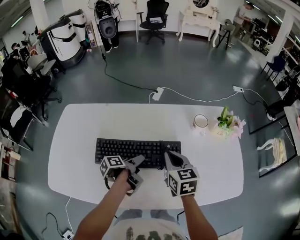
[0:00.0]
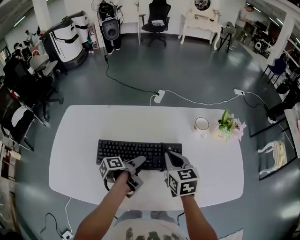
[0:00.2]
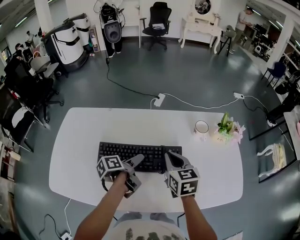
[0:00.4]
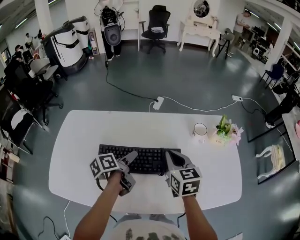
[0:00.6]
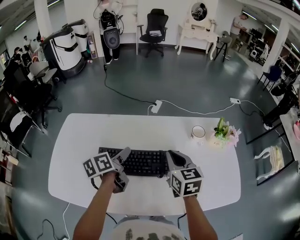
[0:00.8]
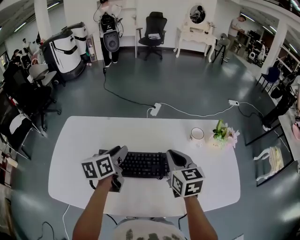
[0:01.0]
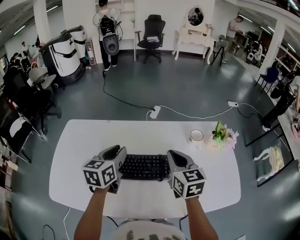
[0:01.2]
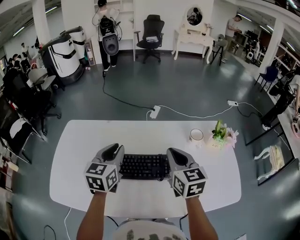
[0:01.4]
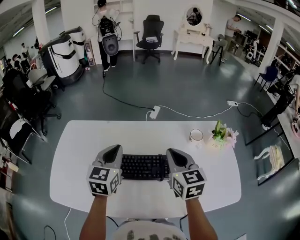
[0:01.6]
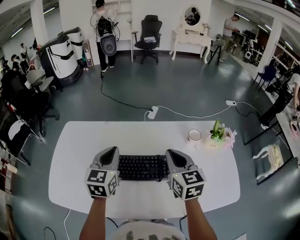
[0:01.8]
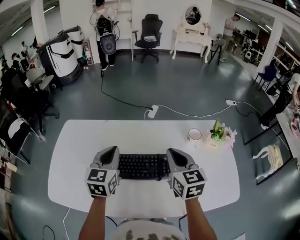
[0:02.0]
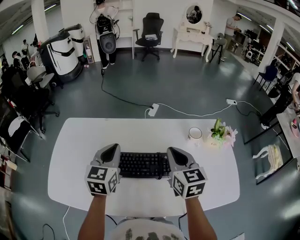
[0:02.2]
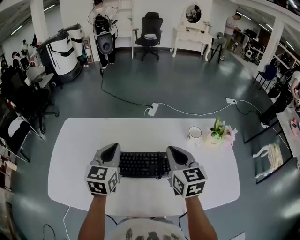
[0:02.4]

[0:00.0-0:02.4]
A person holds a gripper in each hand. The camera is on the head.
0:00.0 to 0:01.2: The right gripper goes roughly 10 cm upward.

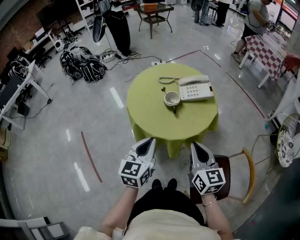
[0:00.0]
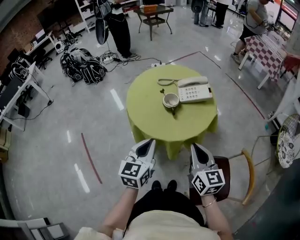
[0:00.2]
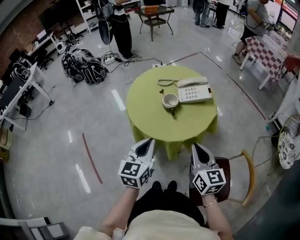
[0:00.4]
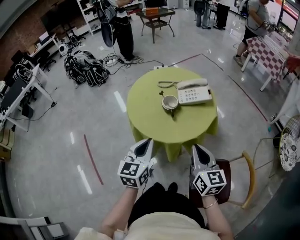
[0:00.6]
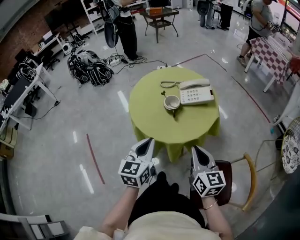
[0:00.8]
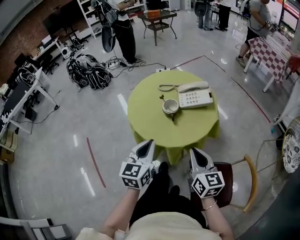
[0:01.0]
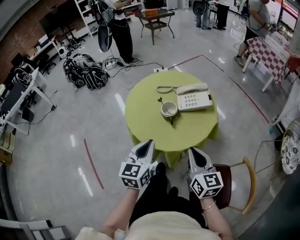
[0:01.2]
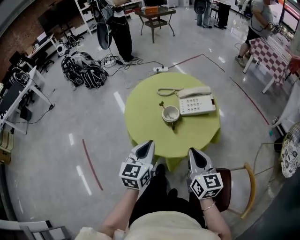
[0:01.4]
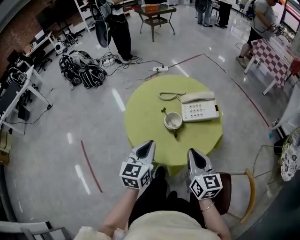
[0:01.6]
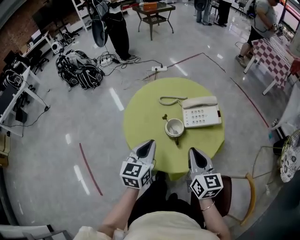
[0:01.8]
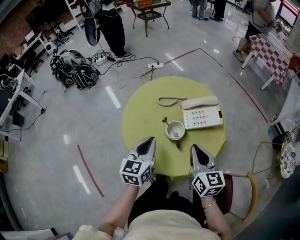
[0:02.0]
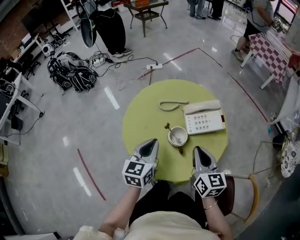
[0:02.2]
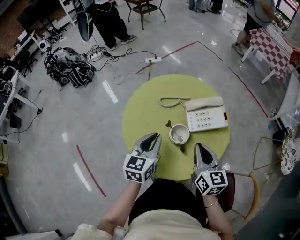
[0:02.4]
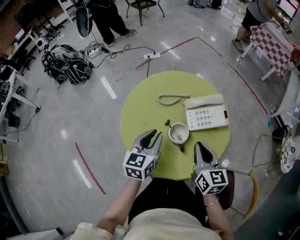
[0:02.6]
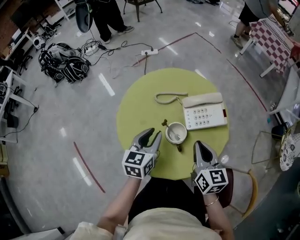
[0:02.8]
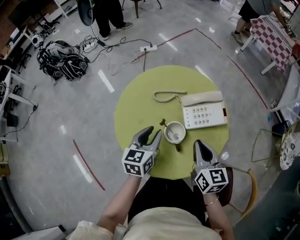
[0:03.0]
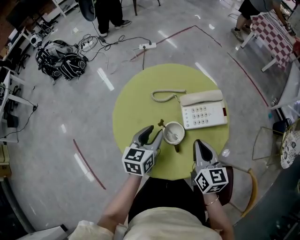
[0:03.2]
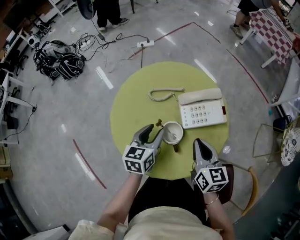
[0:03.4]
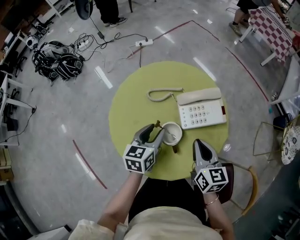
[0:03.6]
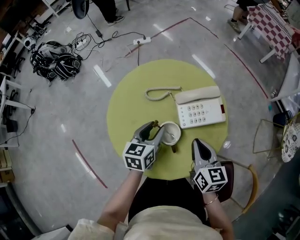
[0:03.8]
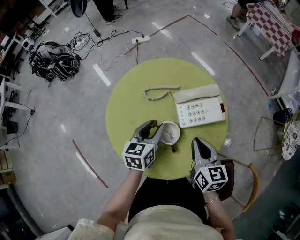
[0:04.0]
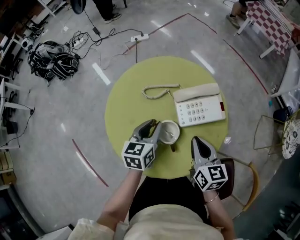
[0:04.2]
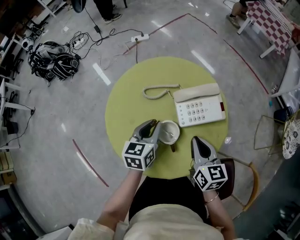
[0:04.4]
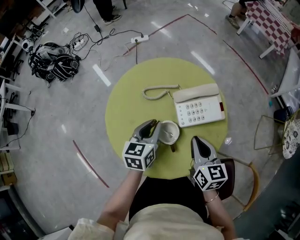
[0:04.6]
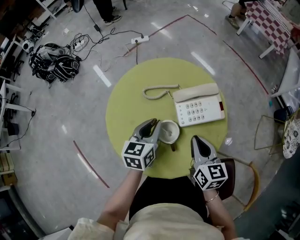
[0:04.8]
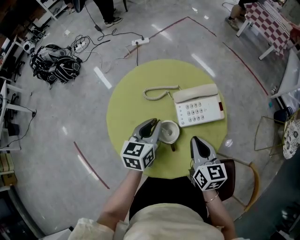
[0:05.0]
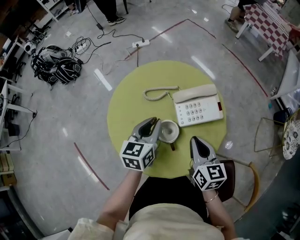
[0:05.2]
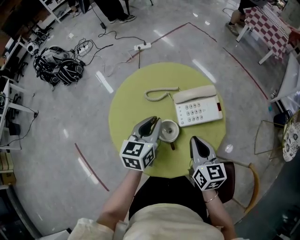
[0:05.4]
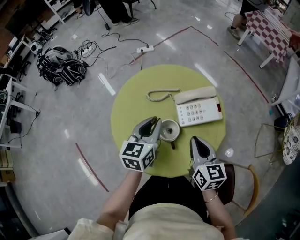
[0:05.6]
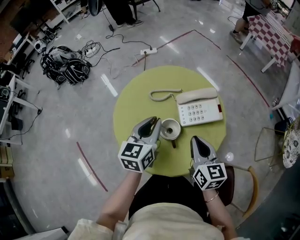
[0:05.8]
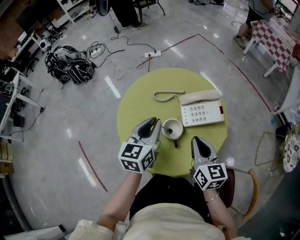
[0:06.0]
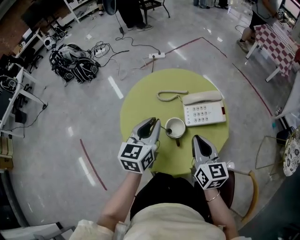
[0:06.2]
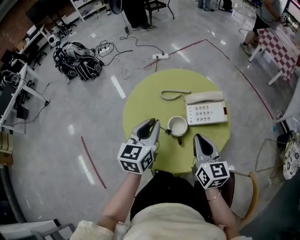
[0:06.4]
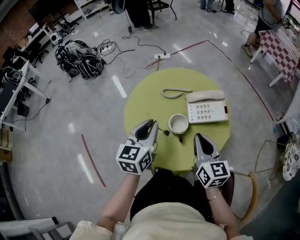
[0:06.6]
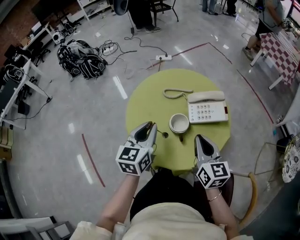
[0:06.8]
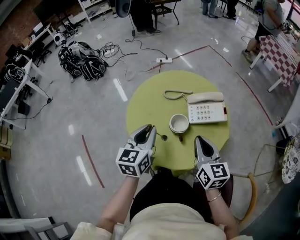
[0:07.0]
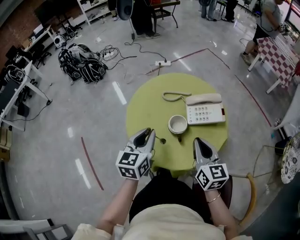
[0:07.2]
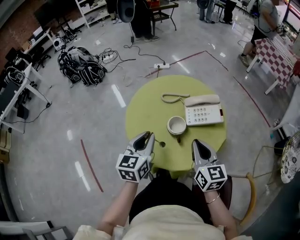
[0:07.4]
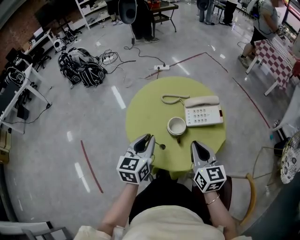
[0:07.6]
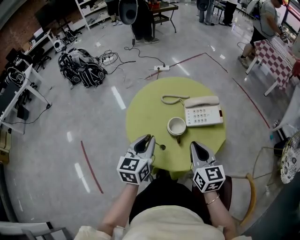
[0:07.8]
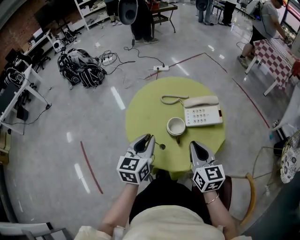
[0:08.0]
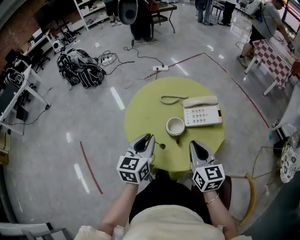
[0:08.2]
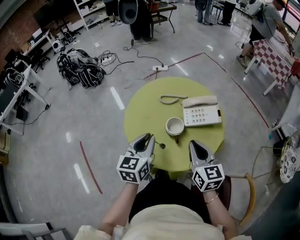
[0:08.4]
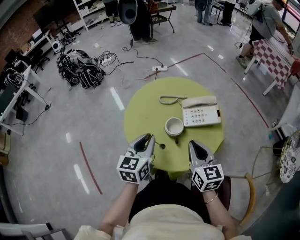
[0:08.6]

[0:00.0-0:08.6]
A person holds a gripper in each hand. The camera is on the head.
0:00.0 to 0:01.4: The grippers both shift forward by some 5 cm.
0:01.4 to 0:02.8: Both grippers move forward, approximately 15 cm. The left gripper opens up.
0:02.8 to 0:04.4: The left gripper ends up about 5 cm from where it was.
0:04.4 to 0:05.8: The left gripper goes some 10 cm upward.
0:05.8 to 0:07.2: The right gripper changes place by approximately 5 cm; the left gripper moves backward and to the left, some 10 cm.
0:07.2 to 0:08.6: The grippers move only a little.

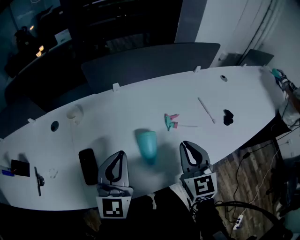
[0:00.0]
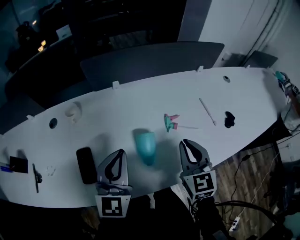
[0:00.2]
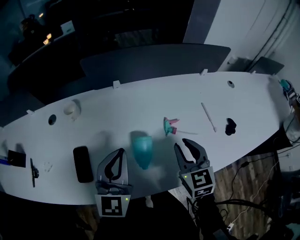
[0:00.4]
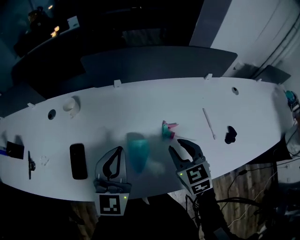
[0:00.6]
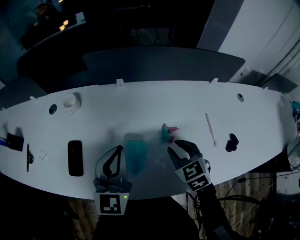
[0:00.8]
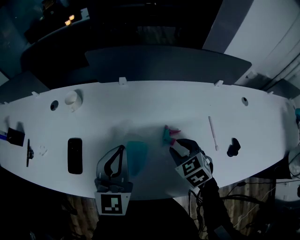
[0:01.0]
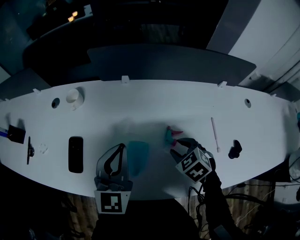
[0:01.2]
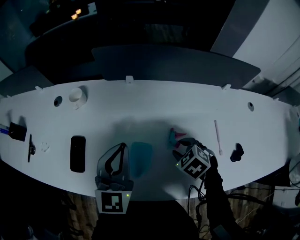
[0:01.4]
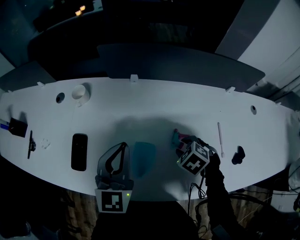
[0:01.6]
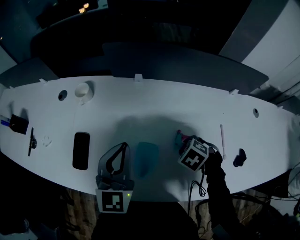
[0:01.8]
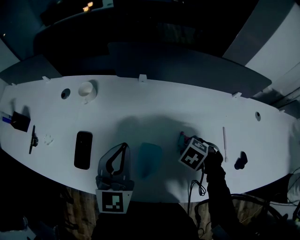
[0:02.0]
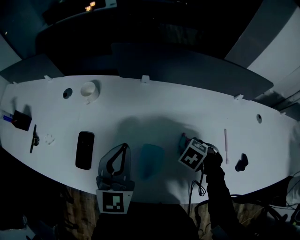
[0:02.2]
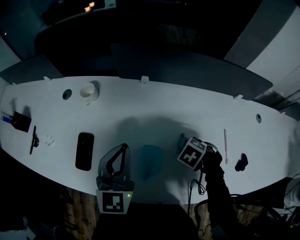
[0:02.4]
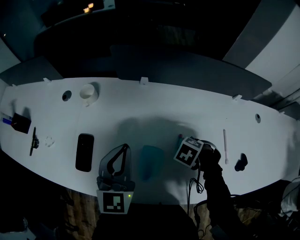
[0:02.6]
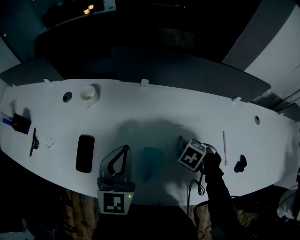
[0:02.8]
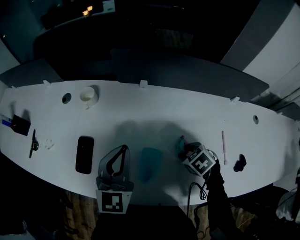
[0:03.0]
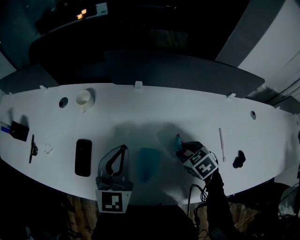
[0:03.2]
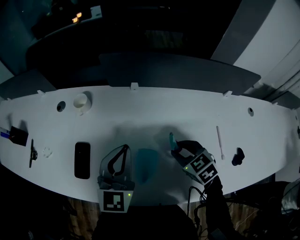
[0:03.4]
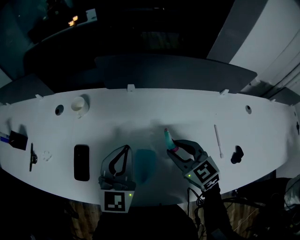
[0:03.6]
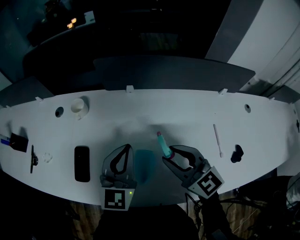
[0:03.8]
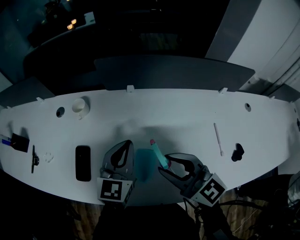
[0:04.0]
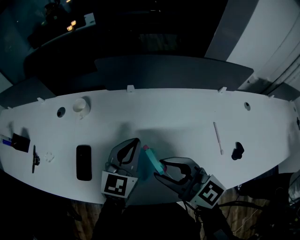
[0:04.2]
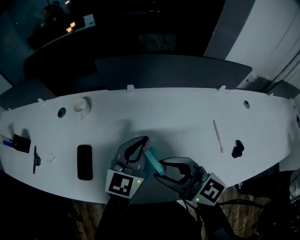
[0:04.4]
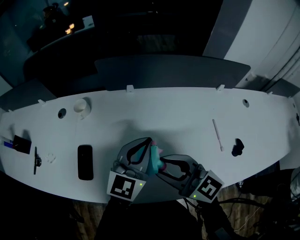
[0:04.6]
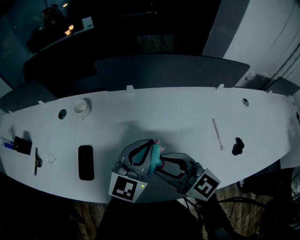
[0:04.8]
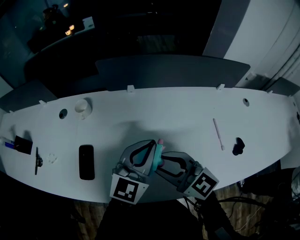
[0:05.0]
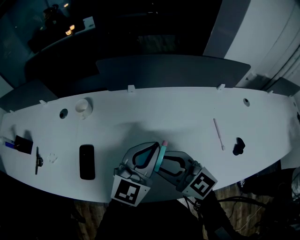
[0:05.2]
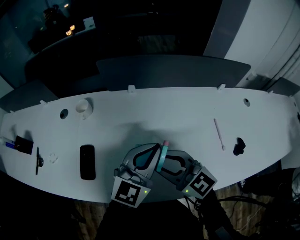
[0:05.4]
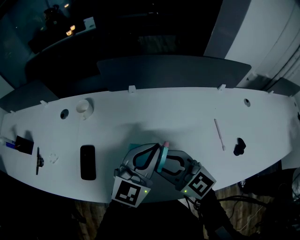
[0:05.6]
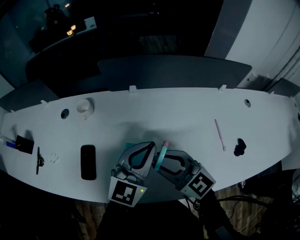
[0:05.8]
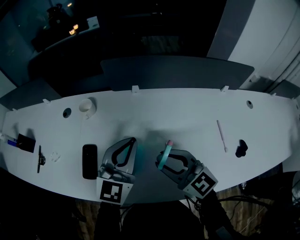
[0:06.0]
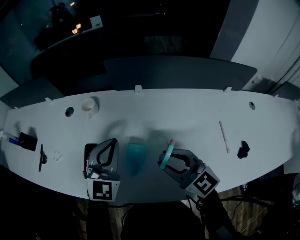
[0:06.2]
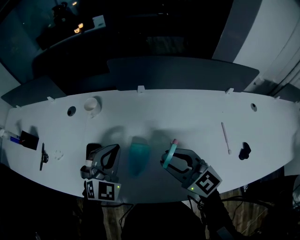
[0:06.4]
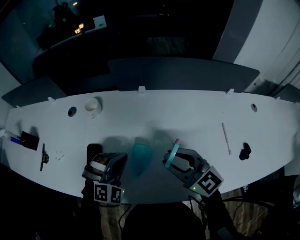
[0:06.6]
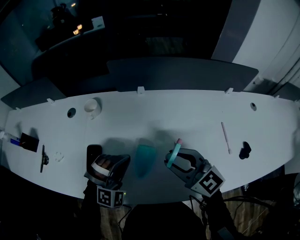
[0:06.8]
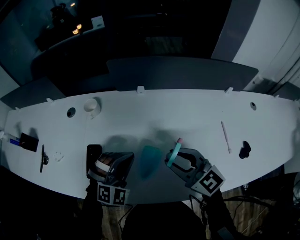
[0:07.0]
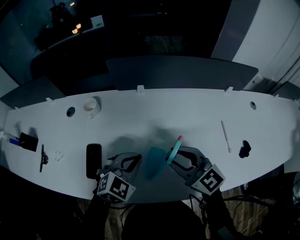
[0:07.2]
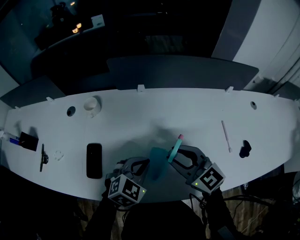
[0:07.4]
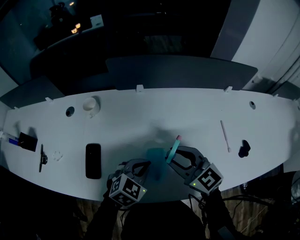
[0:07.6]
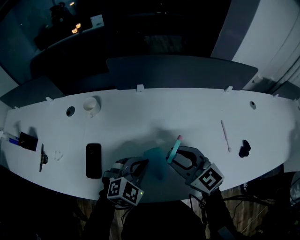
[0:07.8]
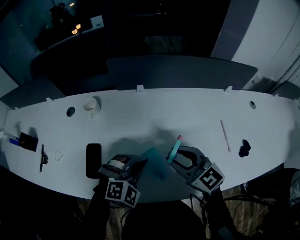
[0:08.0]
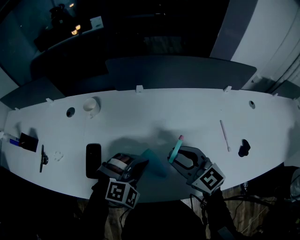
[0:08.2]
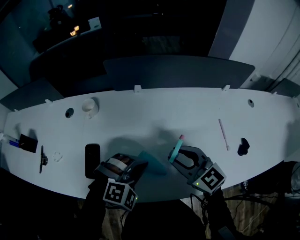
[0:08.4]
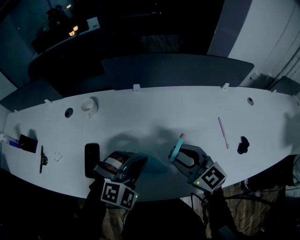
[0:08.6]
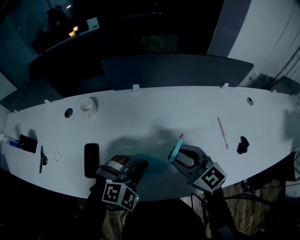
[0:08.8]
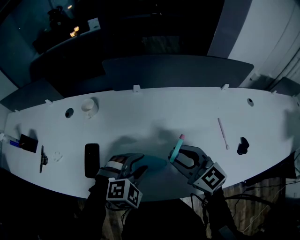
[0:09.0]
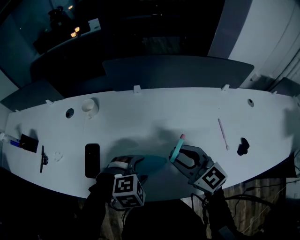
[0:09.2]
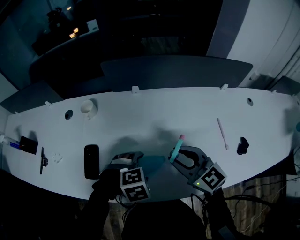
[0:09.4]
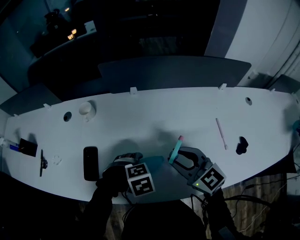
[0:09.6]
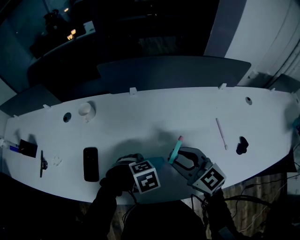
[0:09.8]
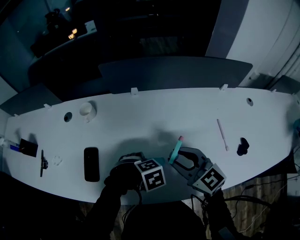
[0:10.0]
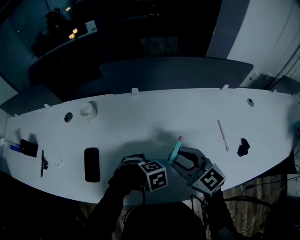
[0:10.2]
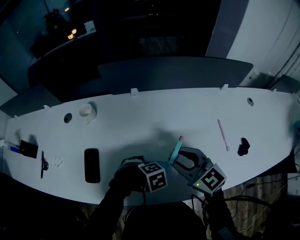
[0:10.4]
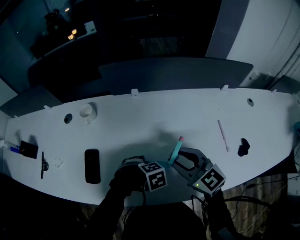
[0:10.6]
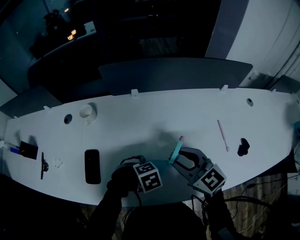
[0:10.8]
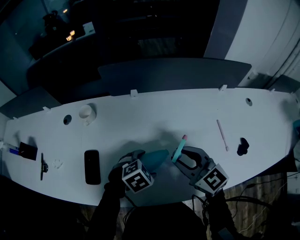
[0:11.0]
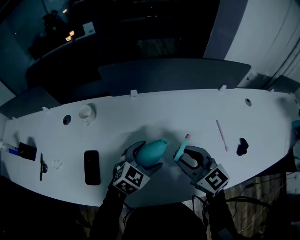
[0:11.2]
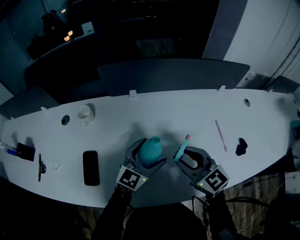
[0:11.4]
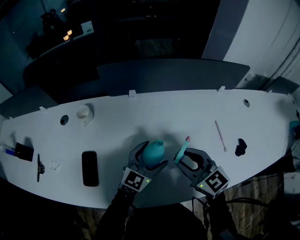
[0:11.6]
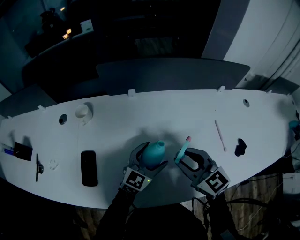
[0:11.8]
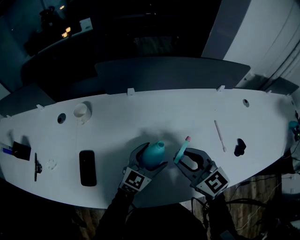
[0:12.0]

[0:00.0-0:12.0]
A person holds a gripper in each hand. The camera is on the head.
0:00.0 to 0:01.6: The right gripper is displaced downward by roughly 15 cm, tilts its fingers roughly 60 degrees downward, and opens its fingers; the left gripper changes place by some 10 cm.
0:03.0 to 0:04.4: The left gripper travels to the right by approximately 10 cm, and swivels approximately 20 degrees; the right gripper shifts approximately 25 cm upward and to the left, and tips its fingers upward by approximately 70 degrees.
0:04.4 to 0:06.0: The right gripper ends up some 5 cm from where it was. The left gripper shifts some 5 cm to the left.
0:06.0 to 0:07.6: The left gripper heads downward and backward, covering about 15 cm, and points its fingers roughly 40 degrees further downward.
0:07.6 to 0:09.0: The left gripper turns by some 30 degrees, and opens its fingers.
0:09.0 to 0:10.4: The left gripper travels downward by some 15 cm, points its fingers approximately 40 degrees further downward, and opens up.
0:10.4 to 0:12.0: The left gripper moves some 15 cm, and tilts its fingers roughly 70 degrees upward.

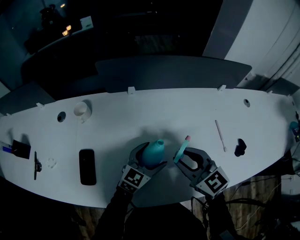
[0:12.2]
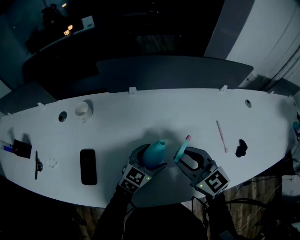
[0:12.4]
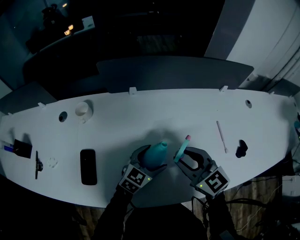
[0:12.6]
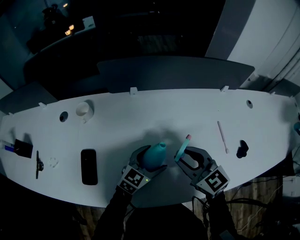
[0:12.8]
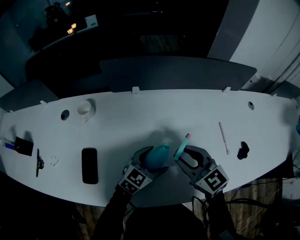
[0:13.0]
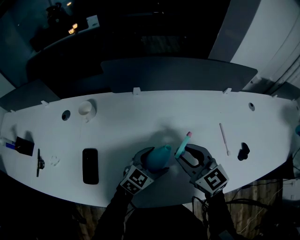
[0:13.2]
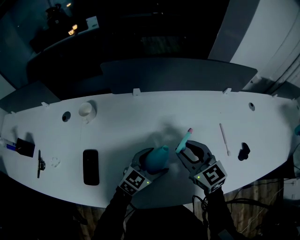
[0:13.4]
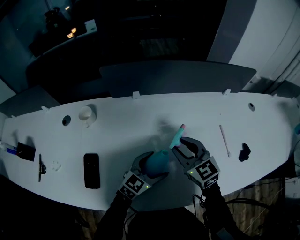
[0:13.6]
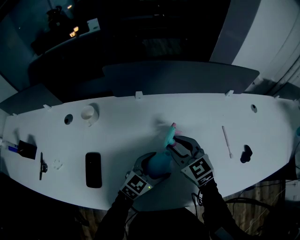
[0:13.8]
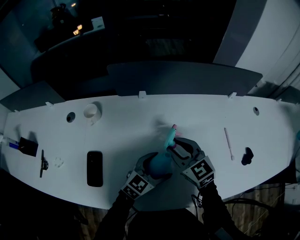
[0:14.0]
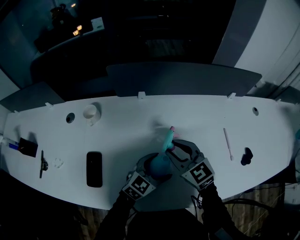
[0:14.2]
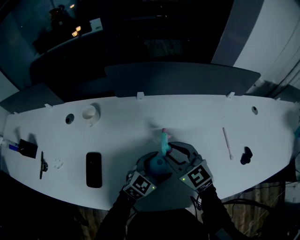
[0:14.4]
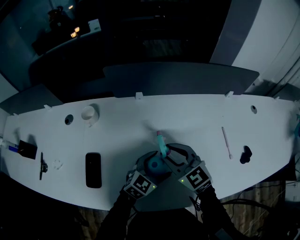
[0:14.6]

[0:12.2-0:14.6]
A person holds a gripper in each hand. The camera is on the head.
0:12.2 to 0:13.4: The grippers make only small movements.
0:13.4 to 0:14.6: The right gripper moves to the left, approximately 5 cm.
